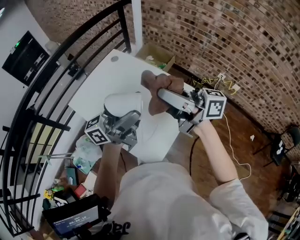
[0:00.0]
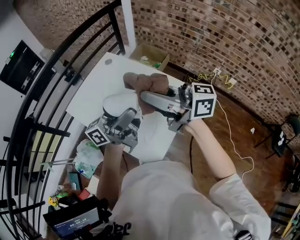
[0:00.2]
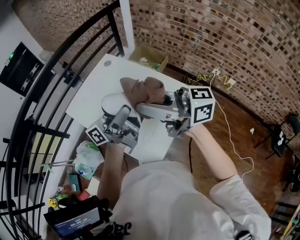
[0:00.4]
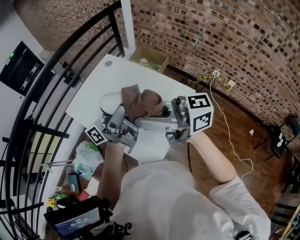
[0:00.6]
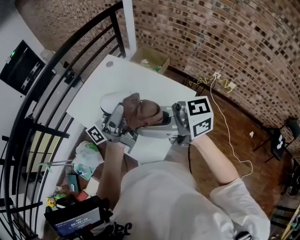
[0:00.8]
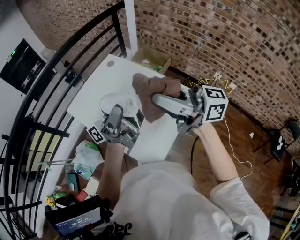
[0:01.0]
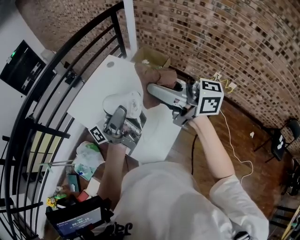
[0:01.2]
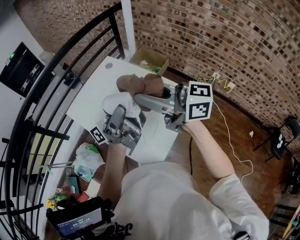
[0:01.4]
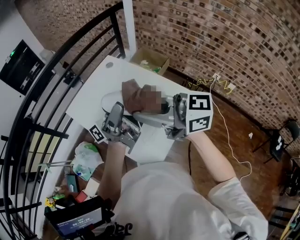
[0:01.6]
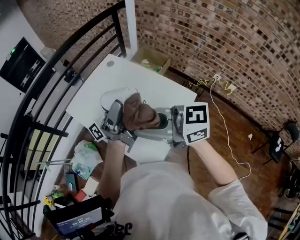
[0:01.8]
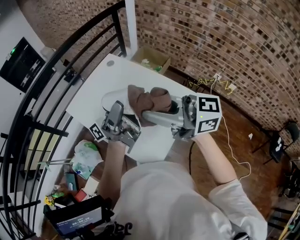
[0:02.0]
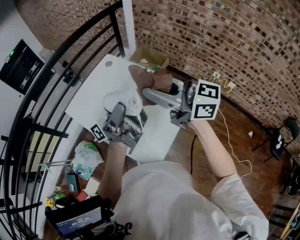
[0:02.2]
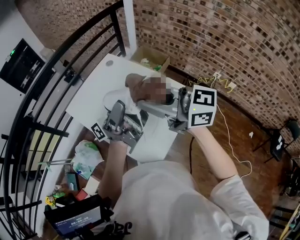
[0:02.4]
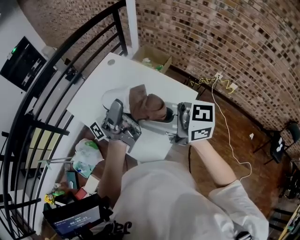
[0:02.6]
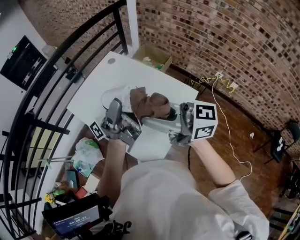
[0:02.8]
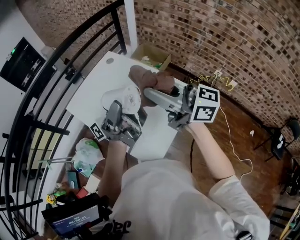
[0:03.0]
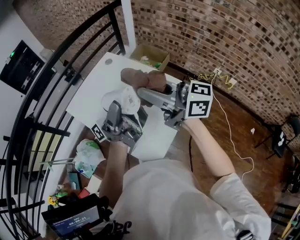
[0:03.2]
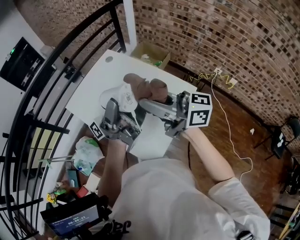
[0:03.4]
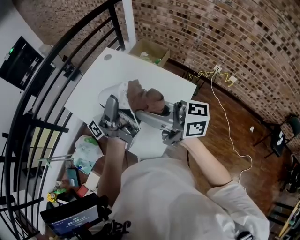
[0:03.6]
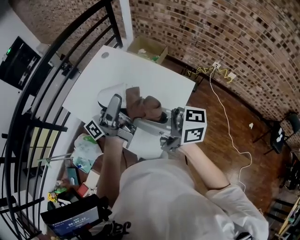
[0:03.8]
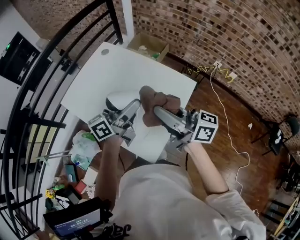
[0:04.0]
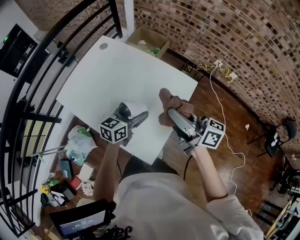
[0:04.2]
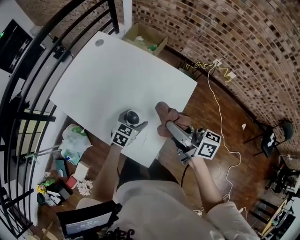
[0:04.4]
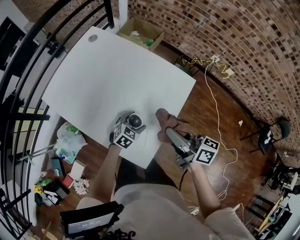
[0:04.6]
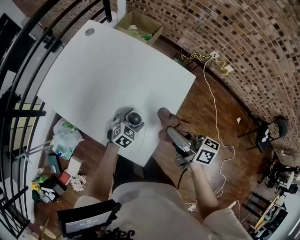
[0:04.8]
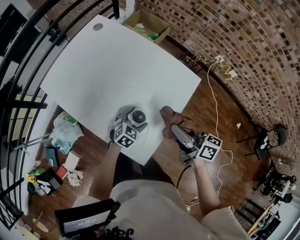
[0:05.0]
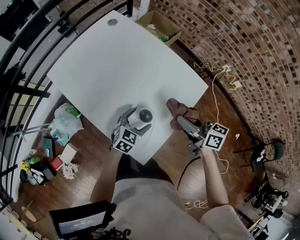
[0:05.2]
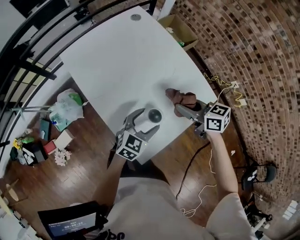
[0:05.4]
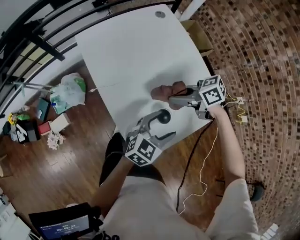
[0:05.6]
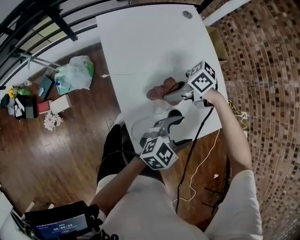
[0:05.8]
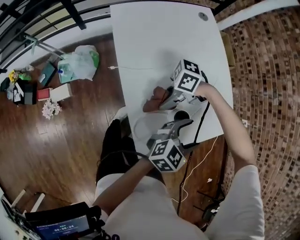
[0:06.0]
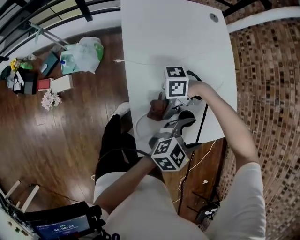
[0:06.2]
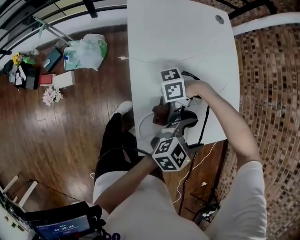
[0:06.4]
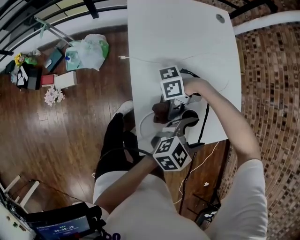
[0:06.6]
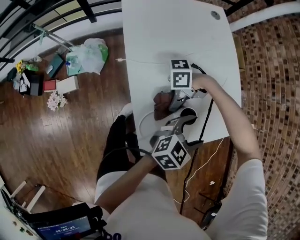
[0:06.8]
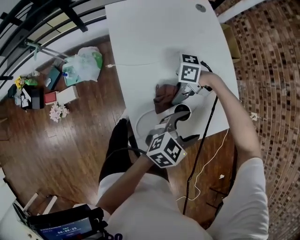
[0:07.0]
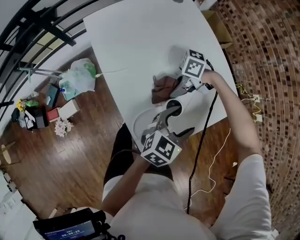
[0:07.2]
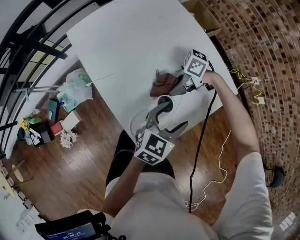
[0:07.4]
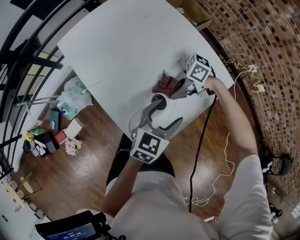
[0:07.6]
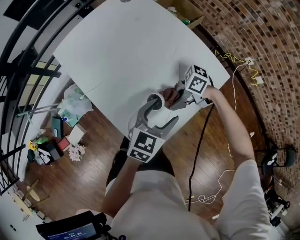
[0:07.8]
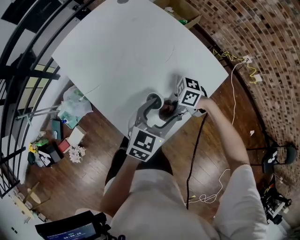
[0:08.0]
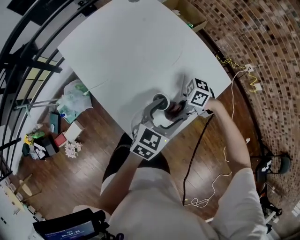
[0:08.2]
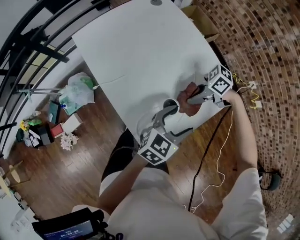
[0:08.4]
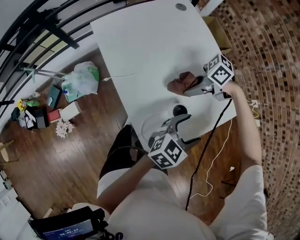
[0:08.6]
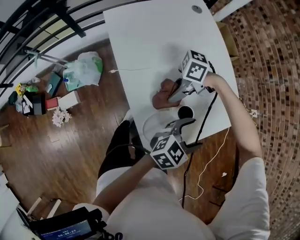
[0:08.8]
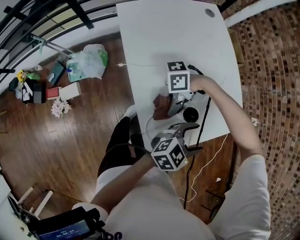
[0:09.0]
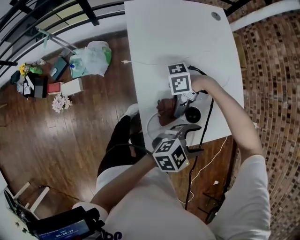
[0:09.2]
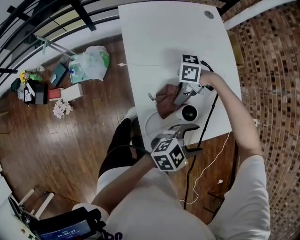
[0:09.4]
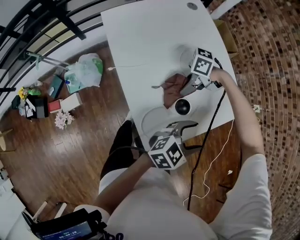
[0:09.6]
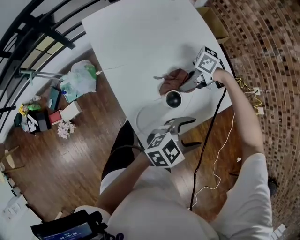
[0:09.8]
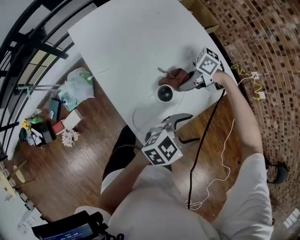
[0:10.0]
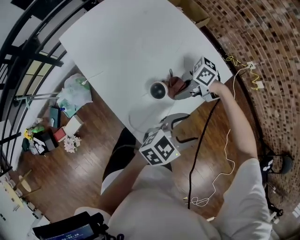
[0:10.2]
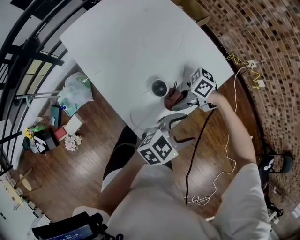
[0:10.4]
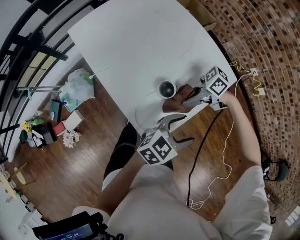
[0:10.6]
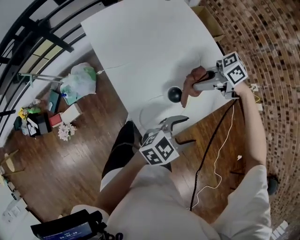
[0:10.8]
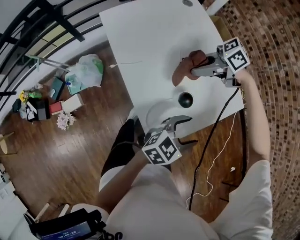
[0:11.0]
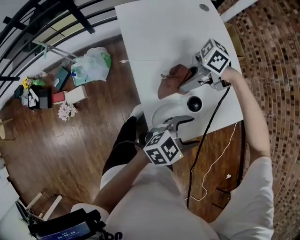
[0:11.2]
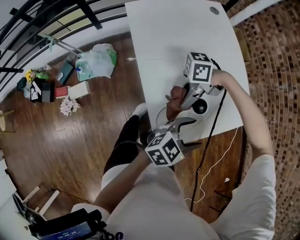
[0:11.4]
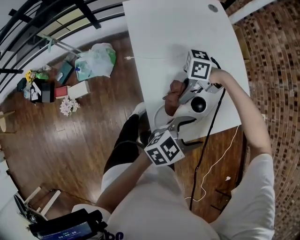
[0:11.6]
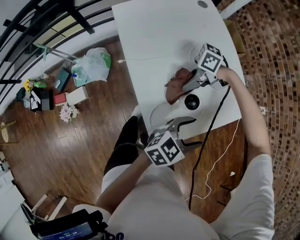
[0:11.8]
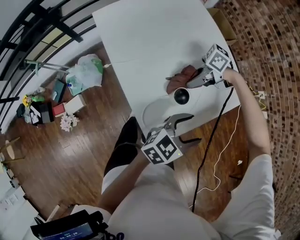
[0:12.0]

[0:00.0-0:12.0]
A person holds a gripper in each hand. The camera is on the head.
0.0 to 1.6 s: The right gripper ends up some 10 cm from where it was, and turns by roughly 30 degrees, while the left gripper rotates approximately 30 degrees.
1.6 to 3.0 s: The right gripper moves about 5 cm.
3.0 to 4.4 s: The right gripper heads downward and to the right, covering about 20 cm, and turns by some 40 degrees. The left gripper goes some 40 cm downward, and angles its fingers downward, by approximately 90 degrees.
4.4 to 6.0 s: The left gripper is displaced upward by roughly 10 cm, and turns by roughly 30 degrees. Meanwhile the right gripper travels downward by some 20 cm, and turns by roughly 130 degrees.
6.0 to 7.6 s: The right gripper shifts by about 15 cm, and turns by roughly 40 degrees.
7.6 to 9.0 s: The left gripper moves about 5 cm, while the right gripper moves about 15 cm, and changes its angle by approximately 60 degrees.
9.0 to 10.4 s: The left gripper ends up about 10 cm from where it was; the right gripper changes place by roughly 15 cm, and swivels roughly 60 degrees.
10.4 to 12.0 s: The right gripper moves some 10 cm upward and comes back.

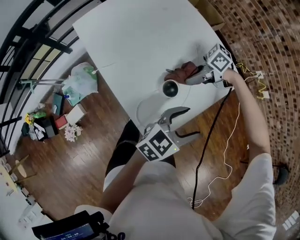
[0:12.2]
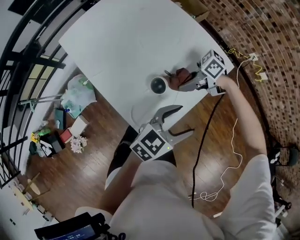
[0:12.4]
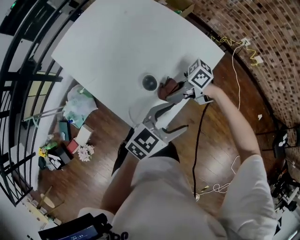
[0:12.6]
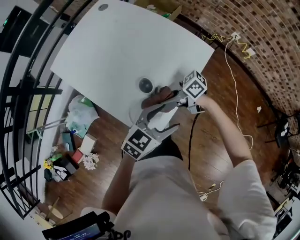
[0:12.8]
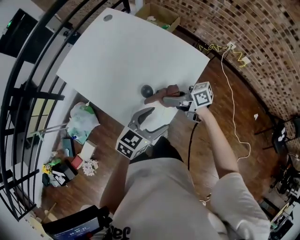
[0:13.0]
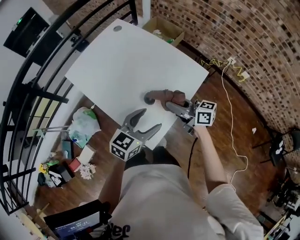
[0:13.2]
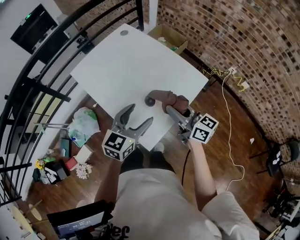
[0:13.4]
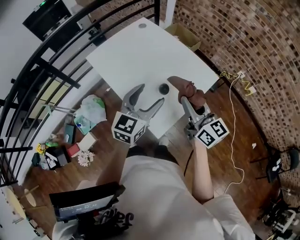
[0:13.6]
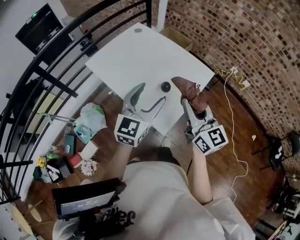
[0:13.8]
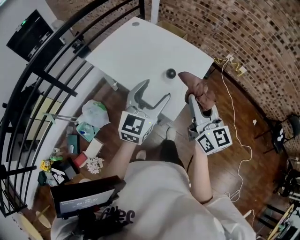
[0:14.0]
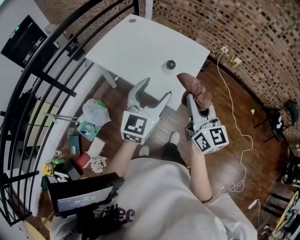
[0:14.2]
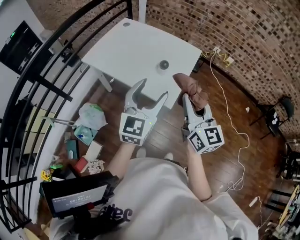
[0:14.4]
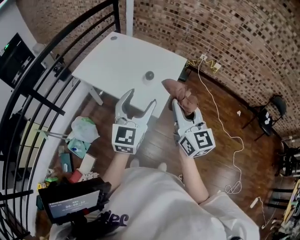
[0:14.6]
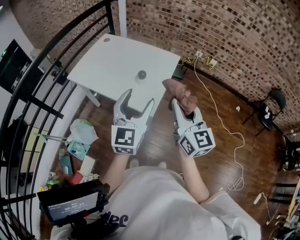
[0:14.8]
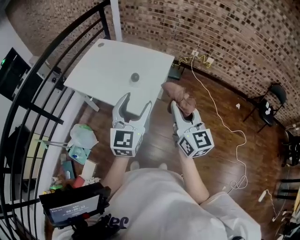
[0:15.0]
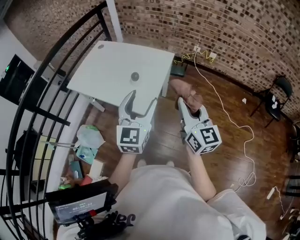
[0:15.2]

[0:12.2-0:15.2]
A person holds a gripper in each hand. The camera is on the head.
12.2 to 13.8 s: The left gripper changes place by some 25 cm, and changes its angle by some 30 degrees, while the right gripper travels upward by some 30 cm, and rotates roughly 110 degrees.
13.8 to 15.2 s: The two grippers go roughly 20 cm backward and to the right. The right gripper changes its angle by roughly 30 degrees.

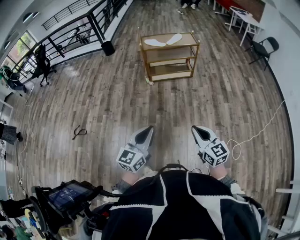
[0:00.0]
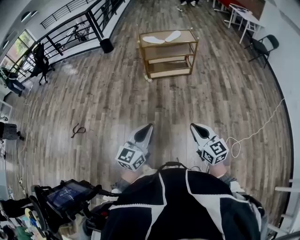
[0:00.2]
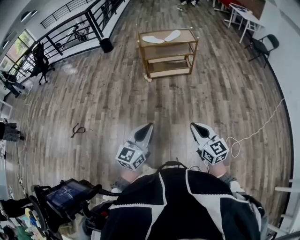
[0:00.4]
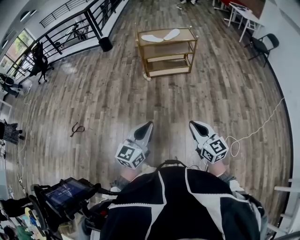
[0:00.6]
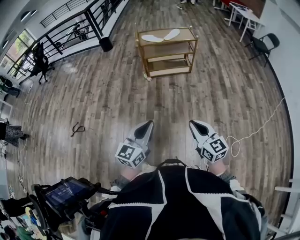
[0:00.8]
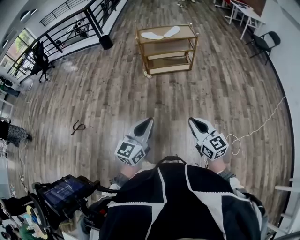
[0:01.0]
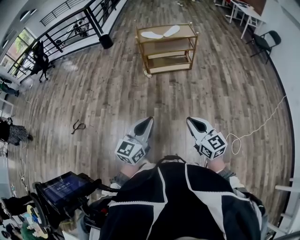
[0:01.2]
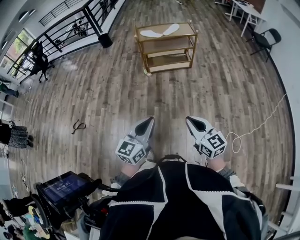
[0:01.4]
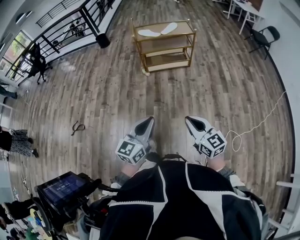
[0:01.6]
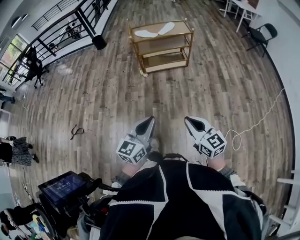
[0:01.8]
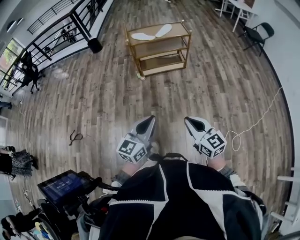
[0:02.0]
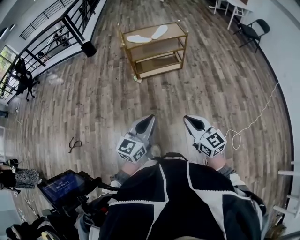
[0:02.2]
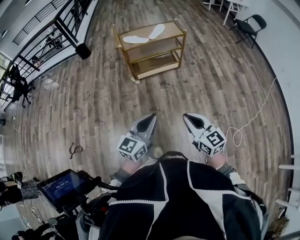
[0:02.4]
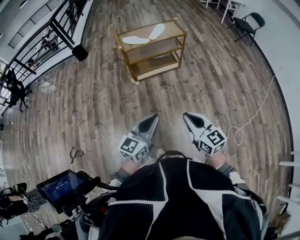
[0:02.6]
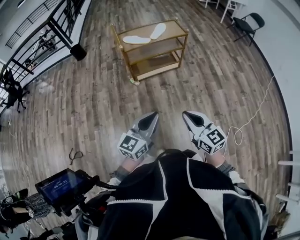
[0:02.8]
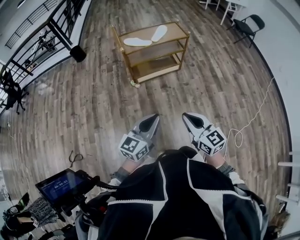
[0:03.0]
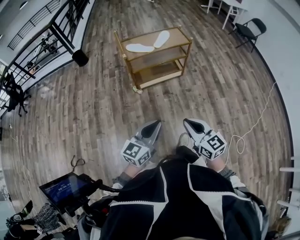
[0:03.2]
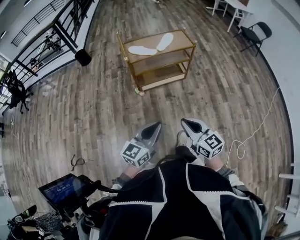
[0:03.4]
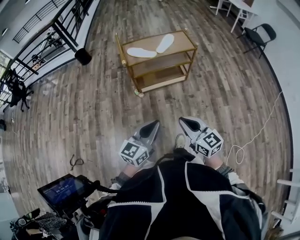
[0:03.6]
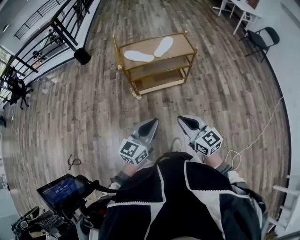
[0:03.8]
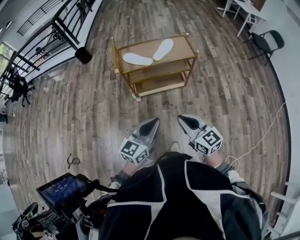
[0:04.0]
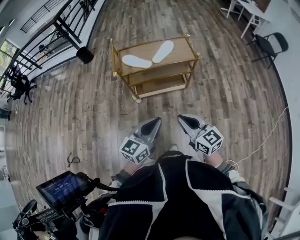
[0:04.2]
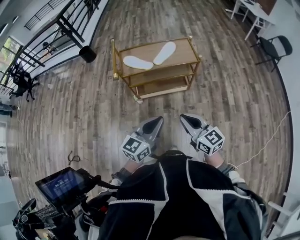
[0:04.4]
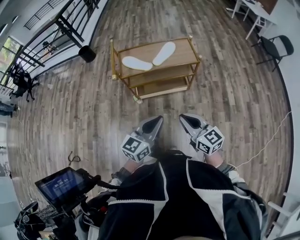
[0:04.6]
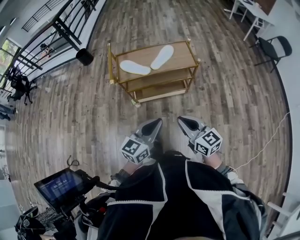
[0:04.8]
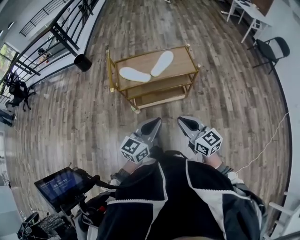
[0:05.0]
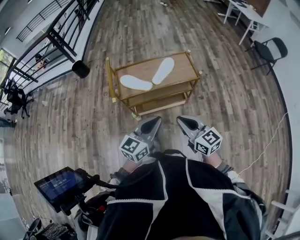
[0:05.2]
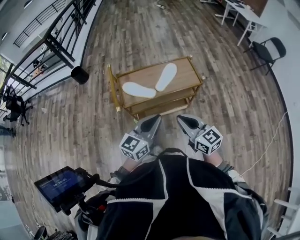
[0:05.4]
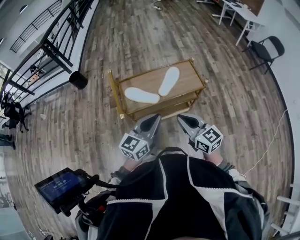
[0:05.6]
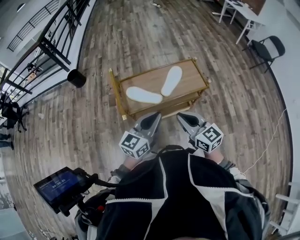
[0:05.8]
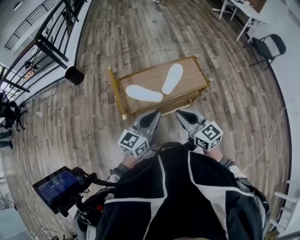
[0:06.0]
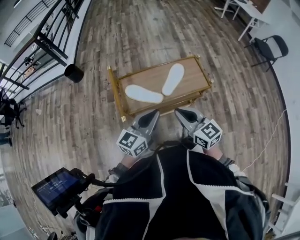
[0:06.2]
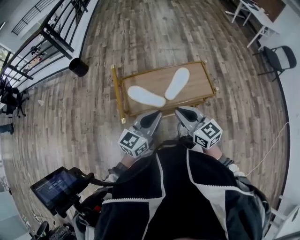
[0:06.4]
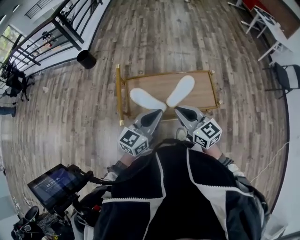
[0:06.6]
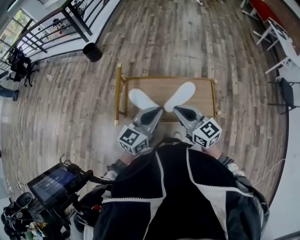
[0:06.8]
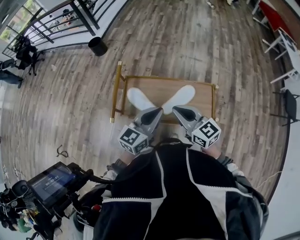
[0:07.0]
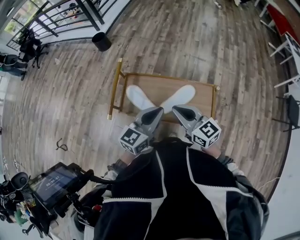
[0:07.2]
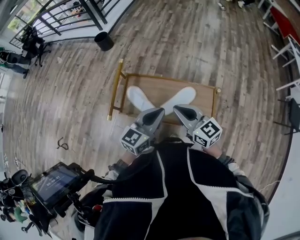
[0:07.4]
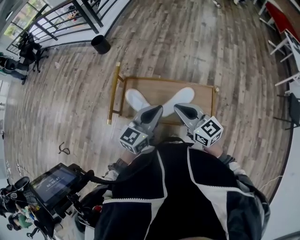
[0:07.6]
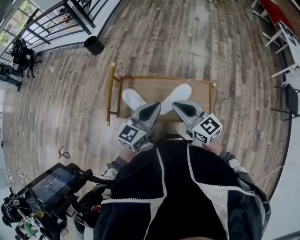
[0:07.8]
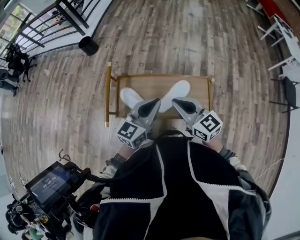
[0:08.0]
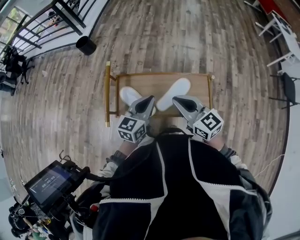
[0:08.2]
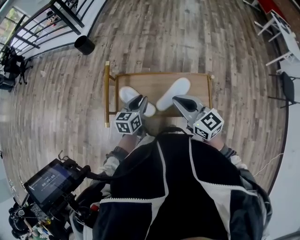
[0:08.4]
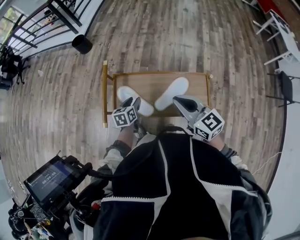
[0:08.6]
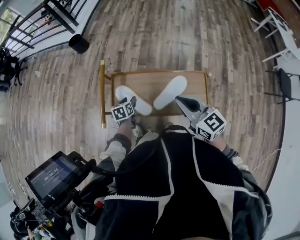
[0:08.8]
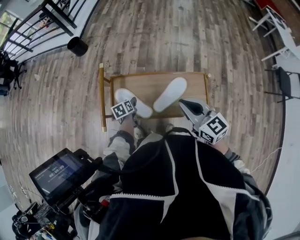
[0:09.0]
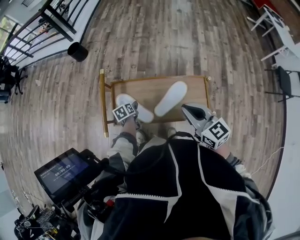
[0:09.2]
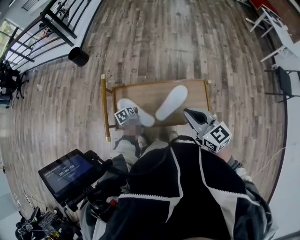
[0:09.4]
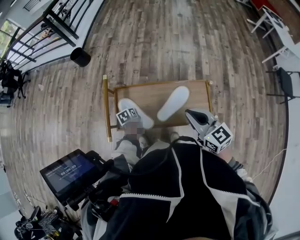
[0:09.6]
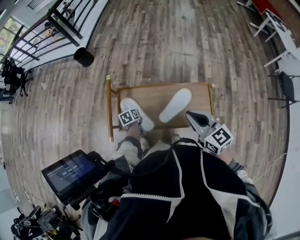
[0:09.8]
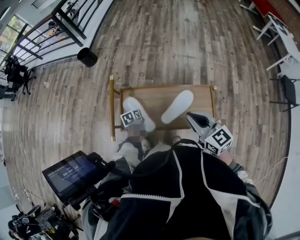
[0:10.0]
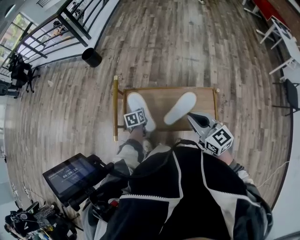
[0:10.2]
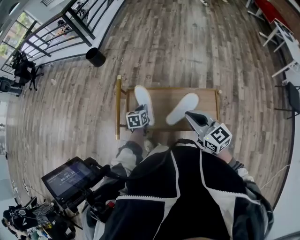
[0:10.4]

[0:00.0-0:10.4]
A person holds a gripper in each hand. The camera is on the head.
0.0 to 1.4 s: The grippers make only small movements.
1.4 to 3.0 s: The left gripper heads forward, covering roughly 25 cm, while the right gripper travels forward and to the left by roughly 25 cm.
3.0 to 4.4 s: The two grippers go approximately 30 cm forward and to the right.
4.4 to 6.0 s: Both grippers travel together forward and to the left, approximately 30 cm.
6.0 to 7.4 s: The left gripper shifts by about 20 cm, and swivels about 30 degrees. The right gripper moves about 25 cm, and changes its angle by about 30 degrees.
7.4 to 9.0 s: The left gripper travels downward and to the left by some 30 cm, points its fingers about 40 degrees further downward, and opens its fingers; the right gripper is displaced to the right by some 5 cm.
9.0 to 10.4 s: The left gripper heads upward, covering approximately 5 cm, swivels approximately 20 degrees, and closes its fingers.
